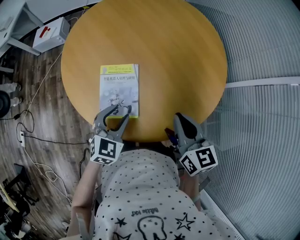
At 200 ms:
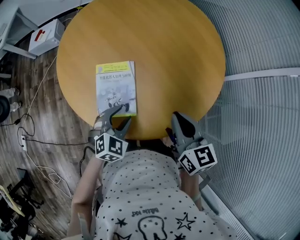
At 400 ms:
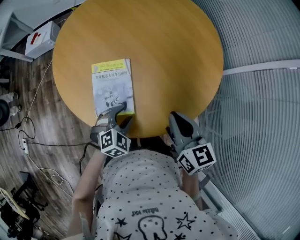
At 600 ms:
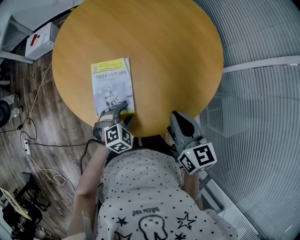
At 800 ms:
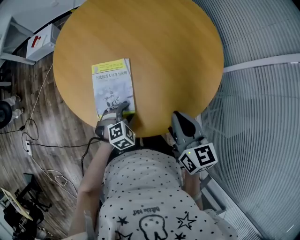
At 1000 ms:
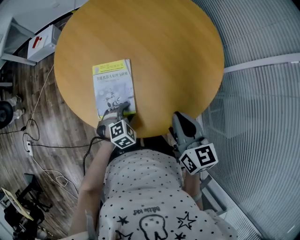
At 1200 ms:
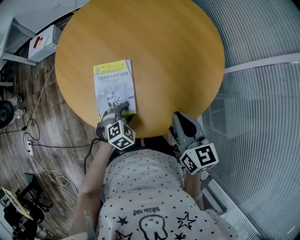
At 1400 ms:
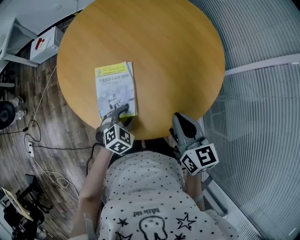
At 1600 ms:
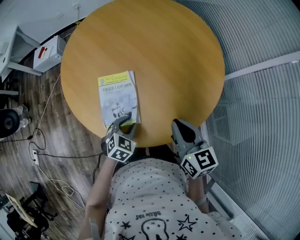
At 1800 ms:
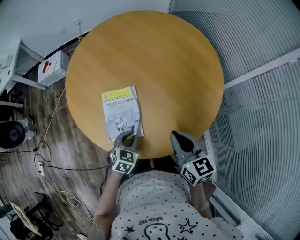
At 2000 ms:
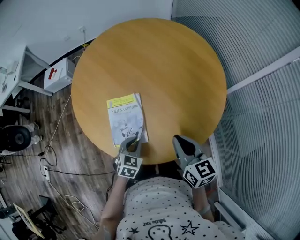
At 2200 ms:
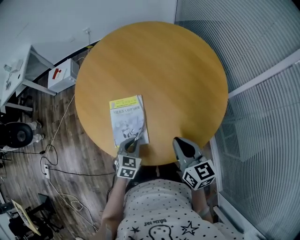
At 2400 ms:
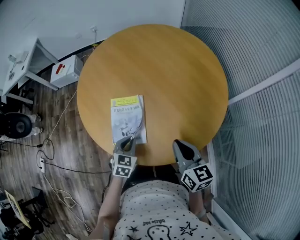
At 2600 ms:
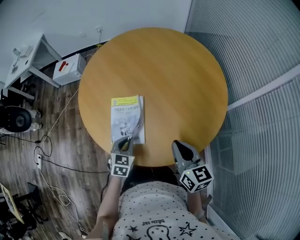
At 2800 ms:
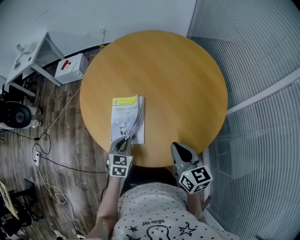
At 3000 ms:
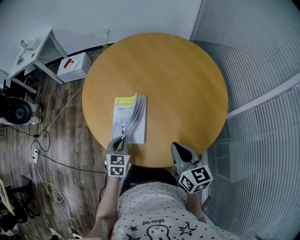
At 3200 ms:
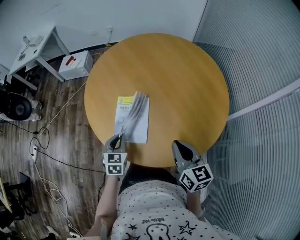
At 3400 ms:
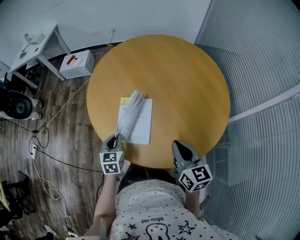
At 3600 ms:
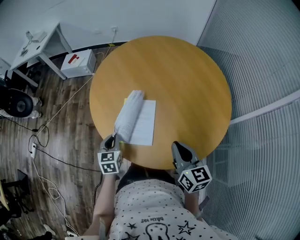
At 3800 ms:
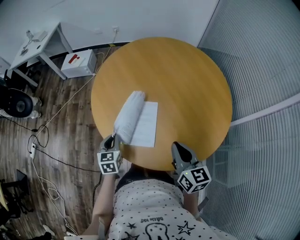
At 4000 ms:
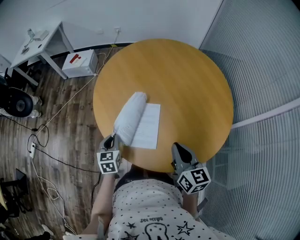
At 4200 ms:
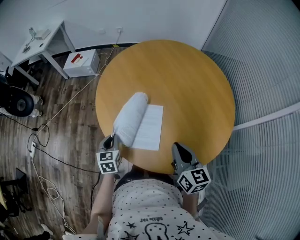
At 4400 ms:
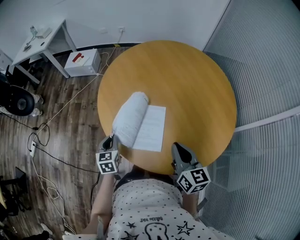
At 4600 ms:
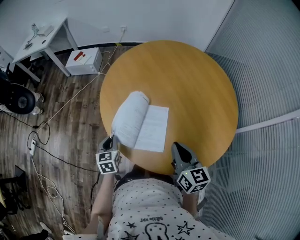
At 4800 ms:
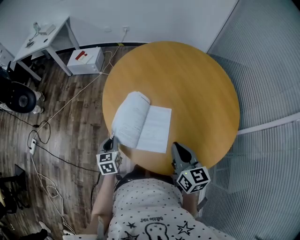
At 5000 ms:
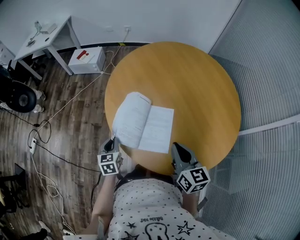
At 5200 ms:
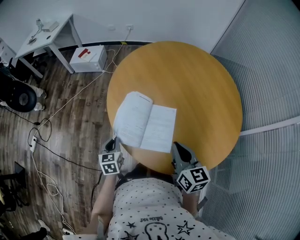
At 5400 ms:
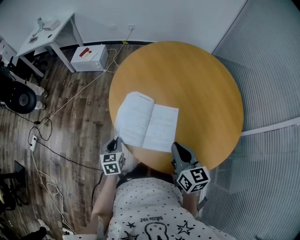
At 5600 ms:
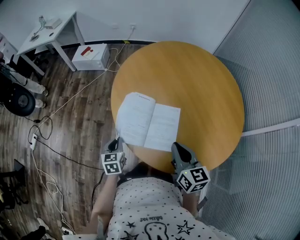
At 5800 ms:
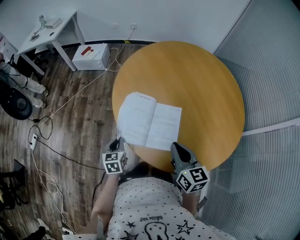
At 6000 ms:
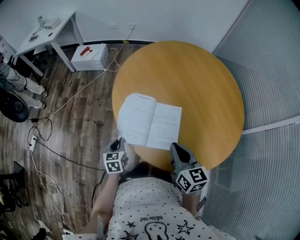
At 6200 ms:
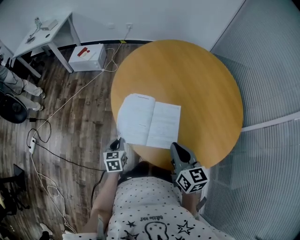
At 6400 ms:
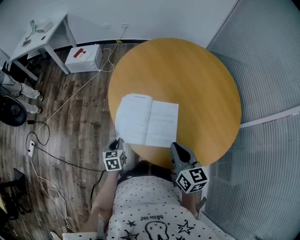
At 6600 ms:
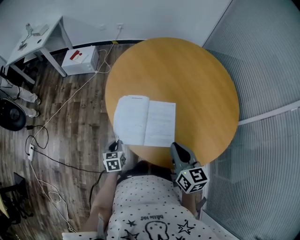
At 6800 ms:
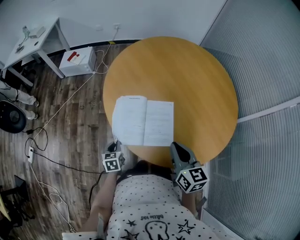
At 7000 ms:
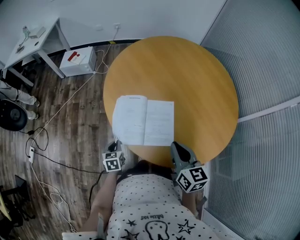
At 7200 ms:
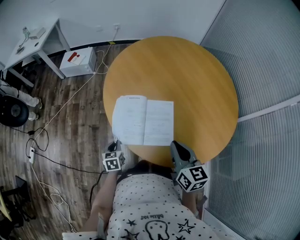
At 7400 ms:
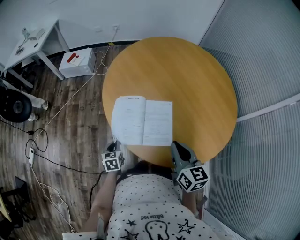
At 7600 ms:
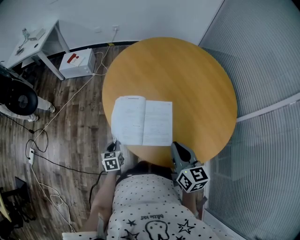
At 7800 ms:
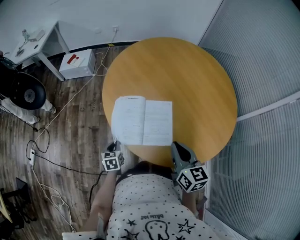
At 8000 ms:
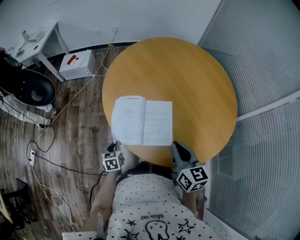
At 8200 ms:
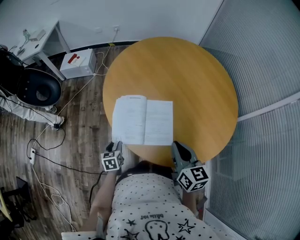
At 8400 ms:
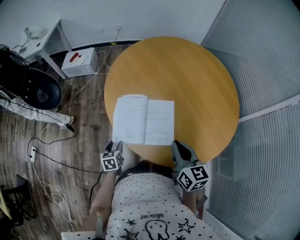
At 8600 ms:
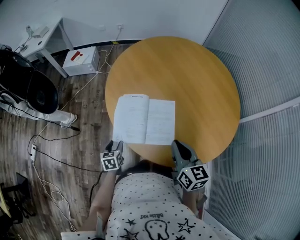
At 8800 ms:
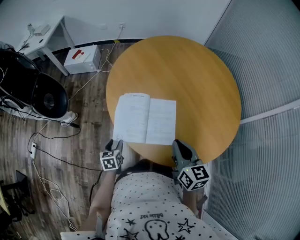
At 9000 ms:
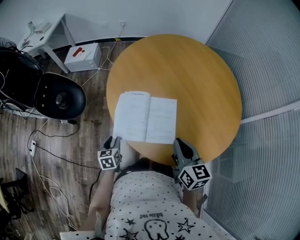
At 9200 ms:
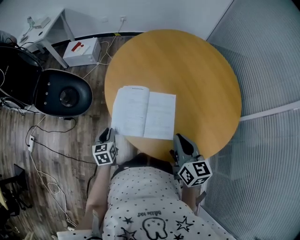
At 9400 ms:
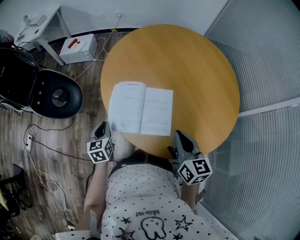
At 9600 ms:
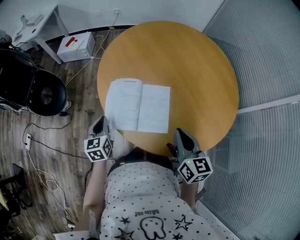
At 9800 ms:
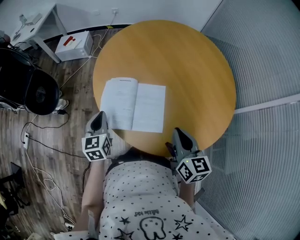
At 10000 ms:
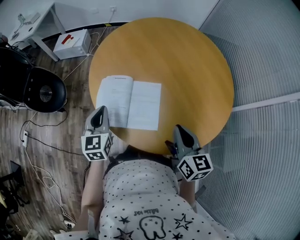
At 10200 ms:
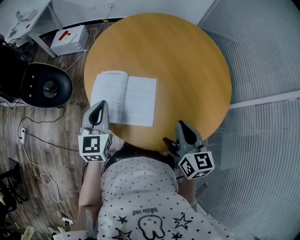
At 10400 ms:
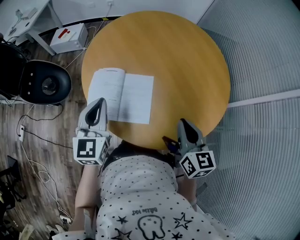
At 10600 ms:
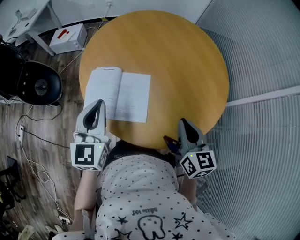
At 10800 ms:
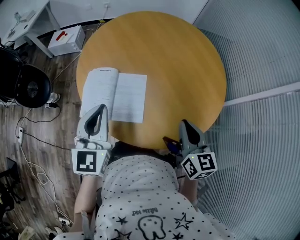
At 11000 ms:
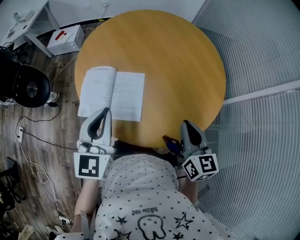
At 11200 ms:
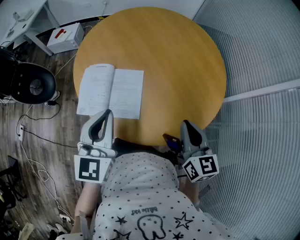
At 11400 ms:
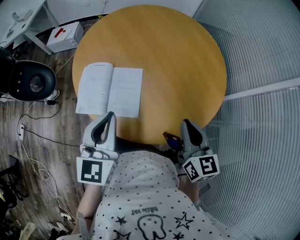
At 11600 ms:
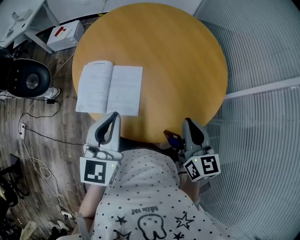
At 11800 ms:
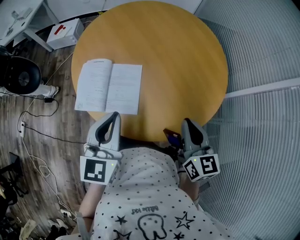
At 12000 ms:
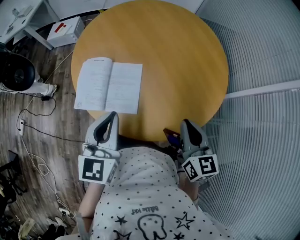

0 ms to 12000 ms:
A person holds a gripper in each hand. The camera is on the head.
0 ms to 1600 ms: The left gripper travels downward by roughly 10 cm.
1600 ms to 3000 ms: The left gripper heads upward and to the left, covering approximately 10 cm, turns by roughly 40 degrees, and closes up.
3000 ms to 4400 ms: The two grippers go approximately 15 cm to the left and forward. The left gripper turns by some 20 degrees.
4400 ms to 6000 ms: The left gripper shifts roughly 5 cm to the left; the right gripper heads to the left, covering some 10 cm.
6000 ms to 7600 ms: The left gripper shifts approximately 5 cm downward.
7600 ms to 9000 ms: The left gripper opens.
9000 ms to 10400 ms: The left gripper goes roughly 30 cm upward and to the right, points its fingers about 30 degrees further upward, and closes its fingers, while the right gripper is displaced to the right by roughly 15 cm.
10400 ms to 12000 ms: The left gripper travels to the right and backward by approximately 15 cm, while the right gripper heads to the right, covering roughly 5 cm.

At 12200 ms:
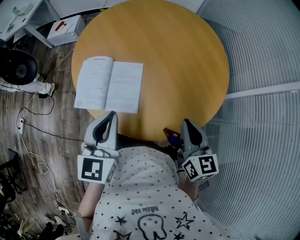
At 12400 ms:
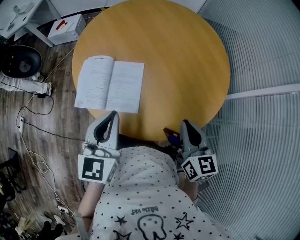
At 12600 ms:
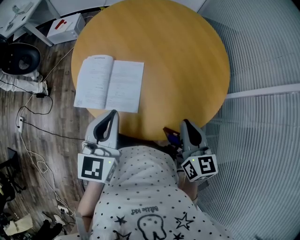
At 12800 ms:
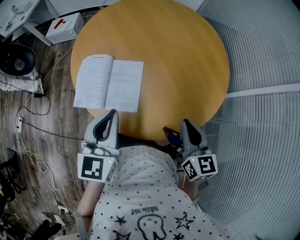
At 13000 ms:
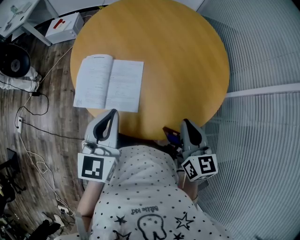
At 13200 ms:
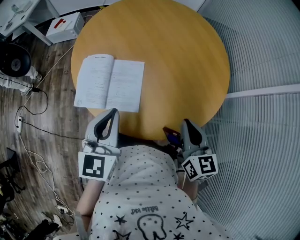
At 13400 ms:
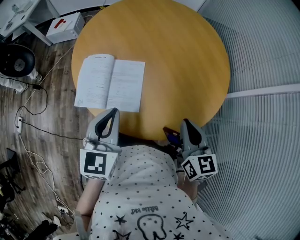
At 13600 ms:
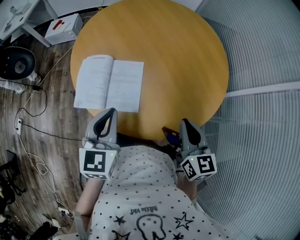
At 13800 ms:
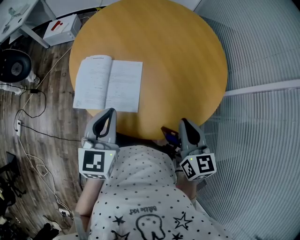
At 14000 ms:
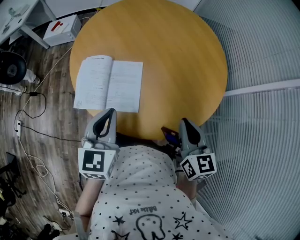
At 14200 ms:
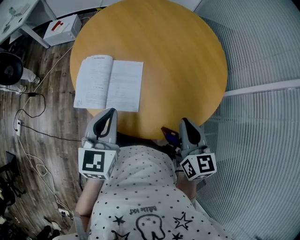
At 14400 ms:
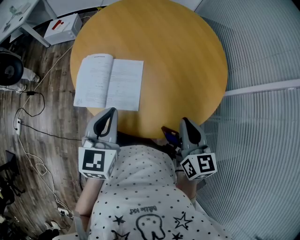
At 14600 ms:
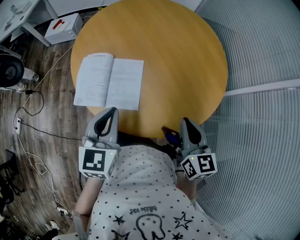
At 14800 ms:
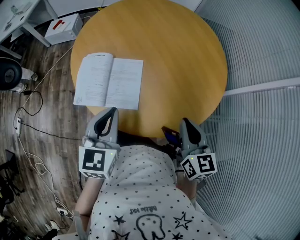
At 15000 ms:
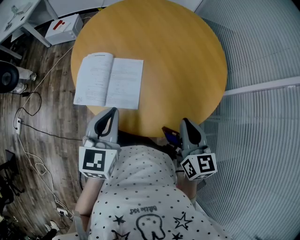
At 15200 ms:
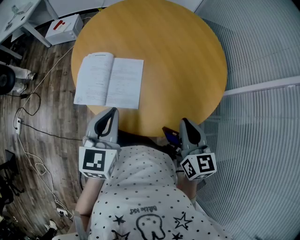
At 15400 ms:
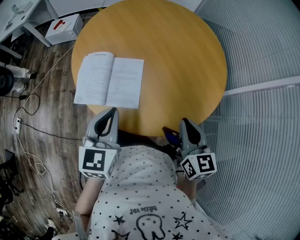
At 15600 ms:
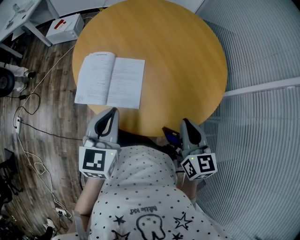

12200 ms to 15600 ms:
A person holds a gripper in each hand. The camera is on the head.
12200 ms to 15600 ms: The grippers stay close to where they were, moving slightly.

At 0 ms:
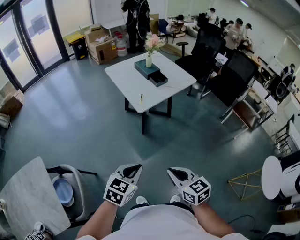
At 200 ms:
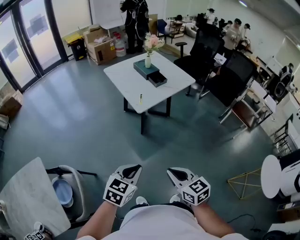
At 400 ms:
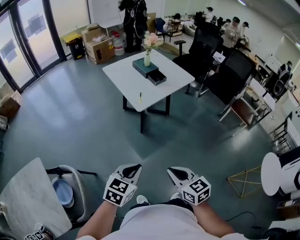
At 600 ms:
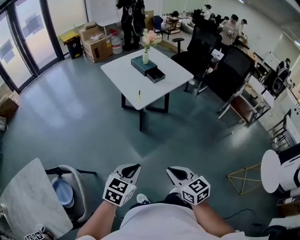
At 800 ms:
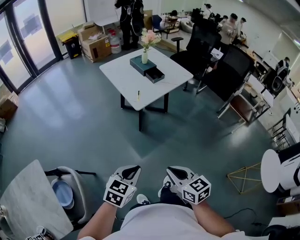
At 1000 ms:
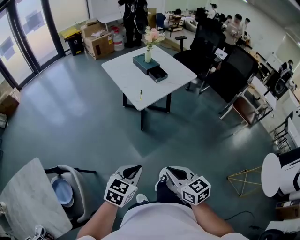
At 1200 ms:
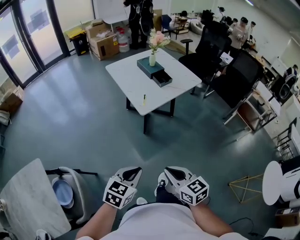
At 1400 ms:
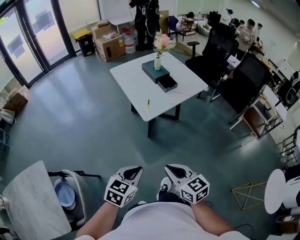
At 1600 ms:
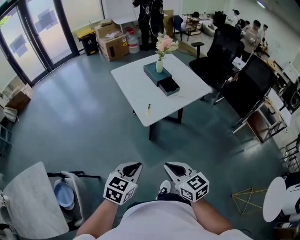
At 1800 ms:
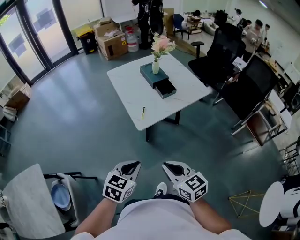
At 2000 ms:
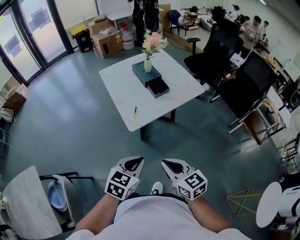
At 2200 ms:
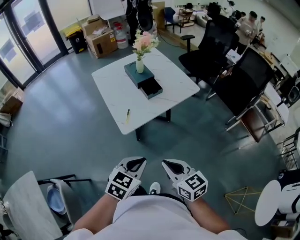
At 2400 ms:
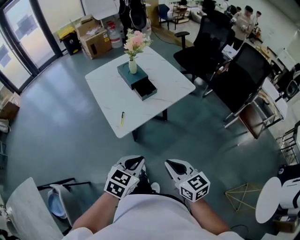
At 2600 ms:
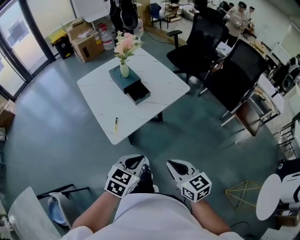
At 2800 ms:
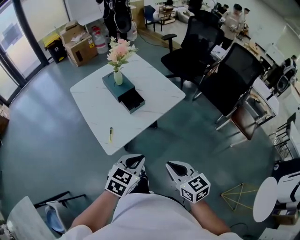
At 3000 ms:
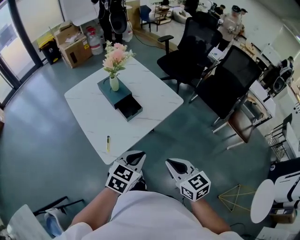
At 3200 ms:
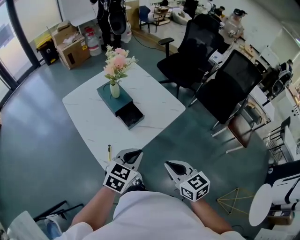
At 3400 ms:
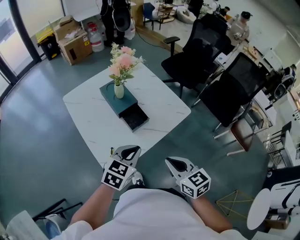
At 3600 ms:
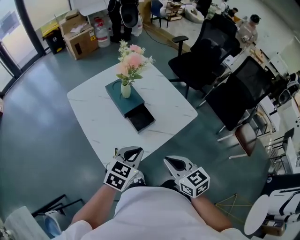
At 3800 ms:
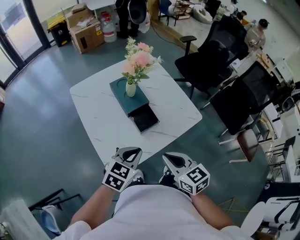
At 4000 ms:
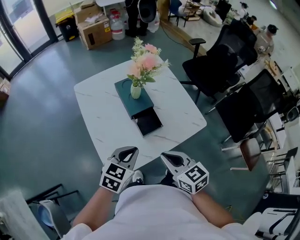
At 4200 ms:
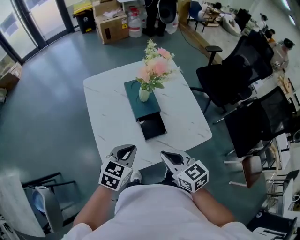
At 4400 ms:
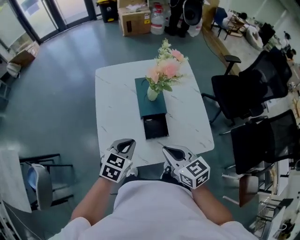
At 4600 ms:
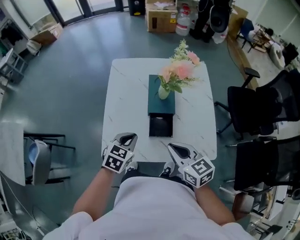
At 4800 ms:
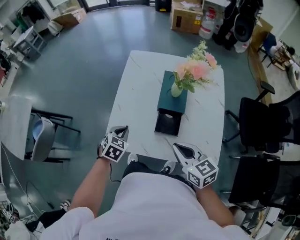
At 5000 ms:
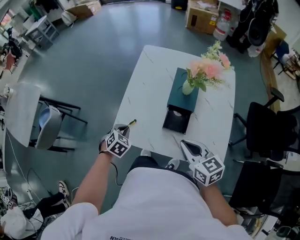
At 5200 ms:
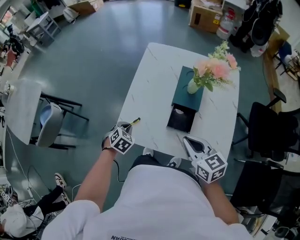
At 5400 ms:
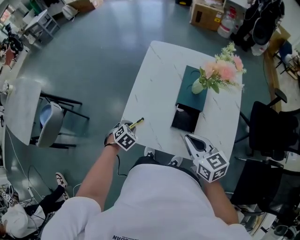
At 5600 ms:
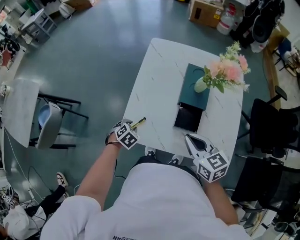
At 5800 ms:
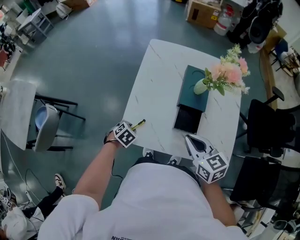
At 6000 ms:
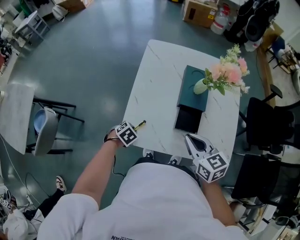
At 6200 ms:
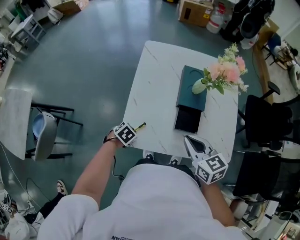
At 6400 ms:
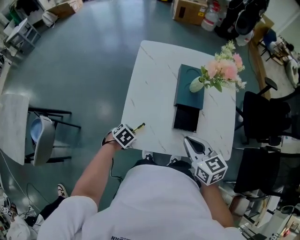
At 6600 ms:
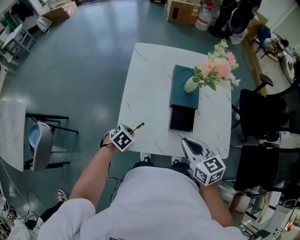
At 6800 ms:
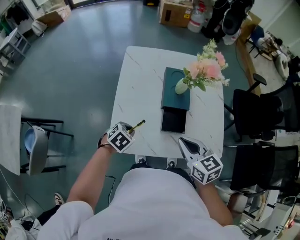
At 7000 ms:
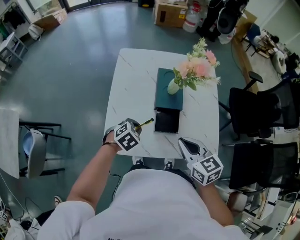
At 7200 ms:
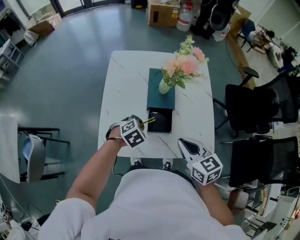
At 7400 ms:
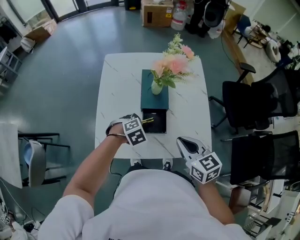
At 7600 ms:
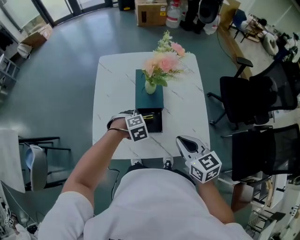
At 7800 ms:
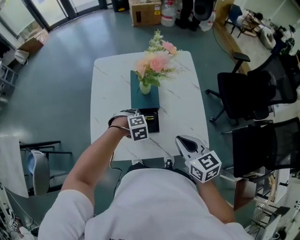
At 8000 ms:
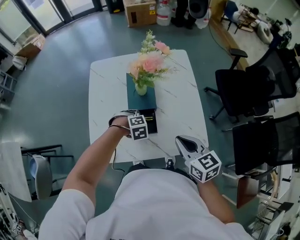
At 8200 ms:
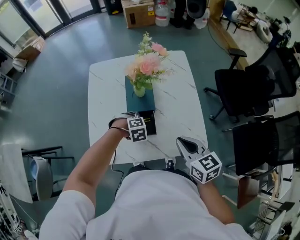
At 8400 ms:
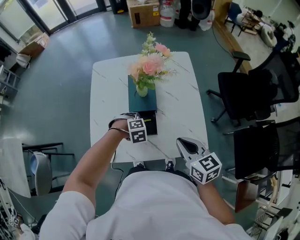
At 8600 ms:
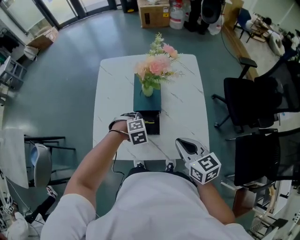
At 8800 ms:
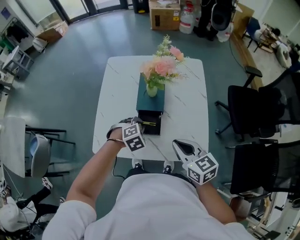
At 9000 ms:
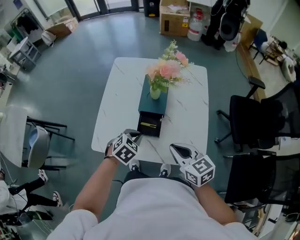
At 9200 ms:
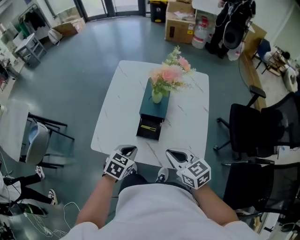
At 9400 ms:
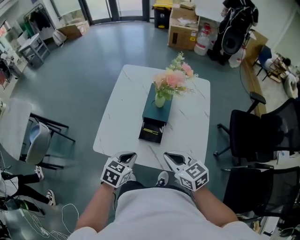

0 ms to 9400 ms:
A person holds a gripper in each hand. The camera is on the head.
0 ms to 1600 ms: The two grippers go about 15 cm forward.
1600 ms to 3200 ms: The two grippers go some 40 cm forward and to the right.
3200 ms to 4800 ms: The left gripper changes place by some 25 cm, and rotates roughly 60 degrees; the right gripper moves about 25 cm, and changes its angle by roughly 50 degrees.
4800 ms to 6200 ms: The left gripper travels downward by approximately 10 cm, and rotates about 30 degrees. Meanwhile the right gripper changes place by some 10 cm.
6200 ms to 7800 ms: The right gripper shifts by approximately 15 cm. Meanwhile the left gripper changes place by roughly 30 cm, and rotates around the line of its fingers by about 50 degrees, clockwise from behind.
7800 ms to 9400 ms: The left gripper moves some 20 cm, and rolls counterclockwise, seen from behind, by approximately 70 degrees. The right gripper turns by roughly 30 degrees.
